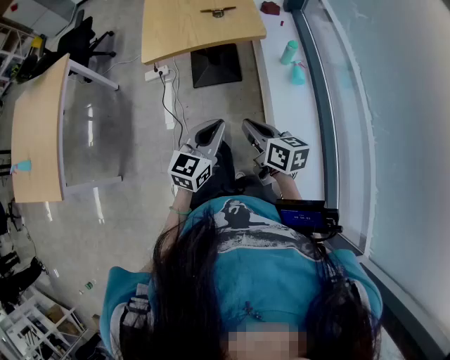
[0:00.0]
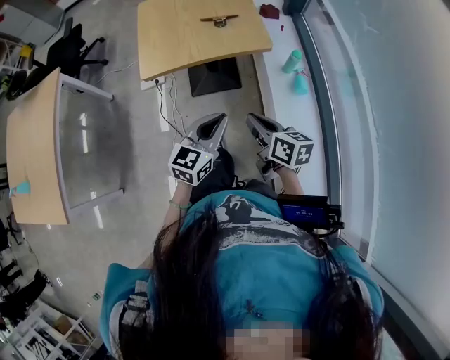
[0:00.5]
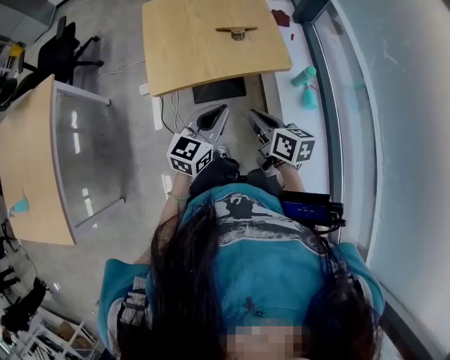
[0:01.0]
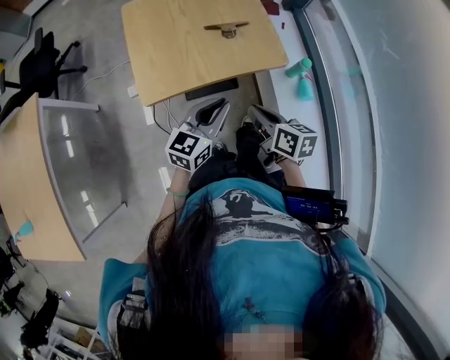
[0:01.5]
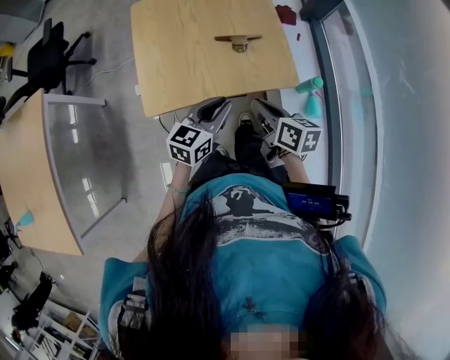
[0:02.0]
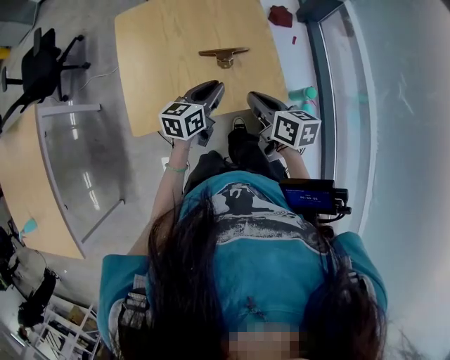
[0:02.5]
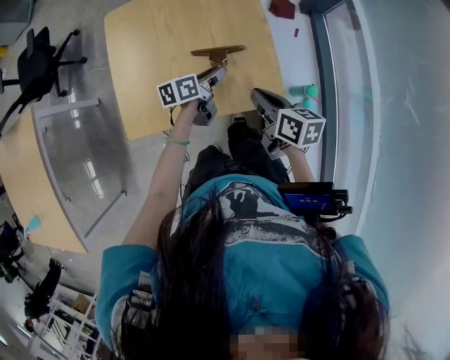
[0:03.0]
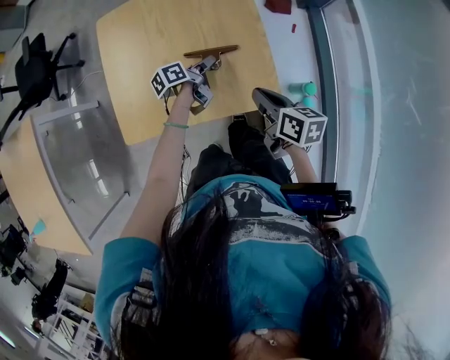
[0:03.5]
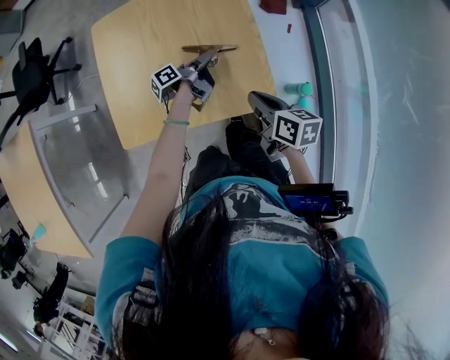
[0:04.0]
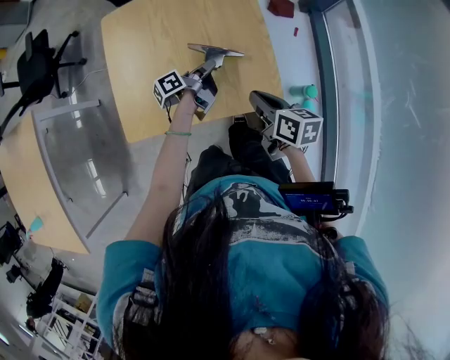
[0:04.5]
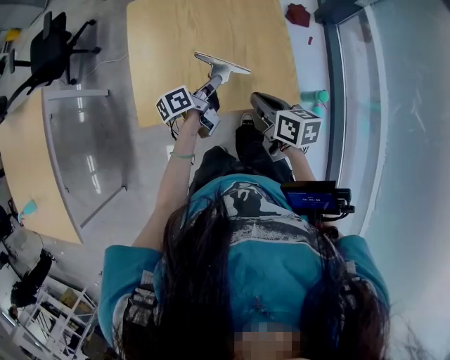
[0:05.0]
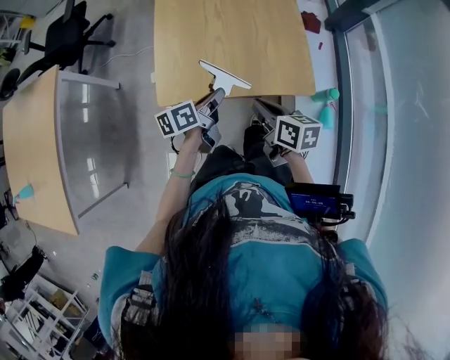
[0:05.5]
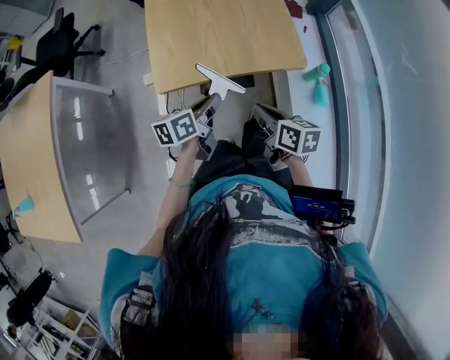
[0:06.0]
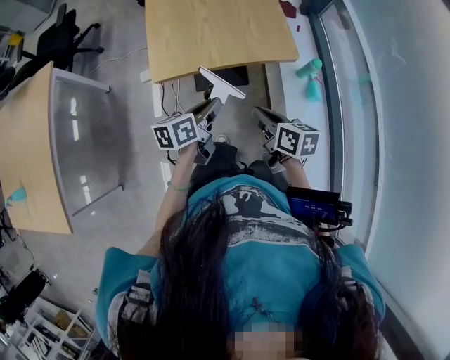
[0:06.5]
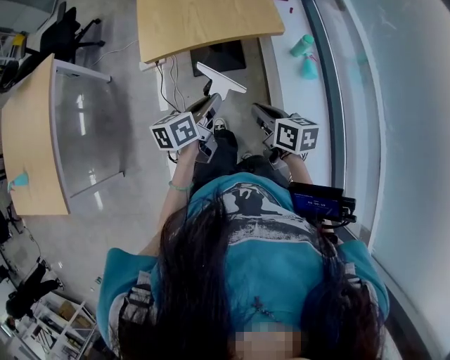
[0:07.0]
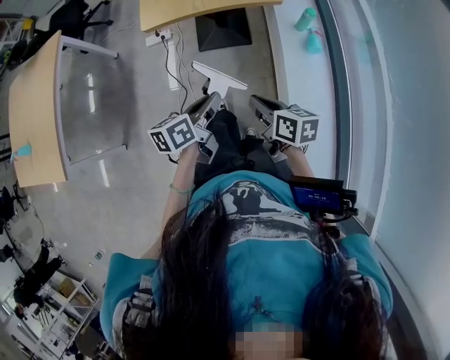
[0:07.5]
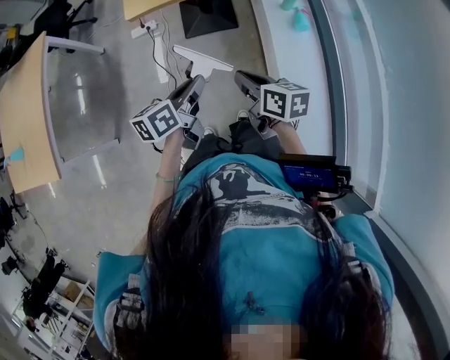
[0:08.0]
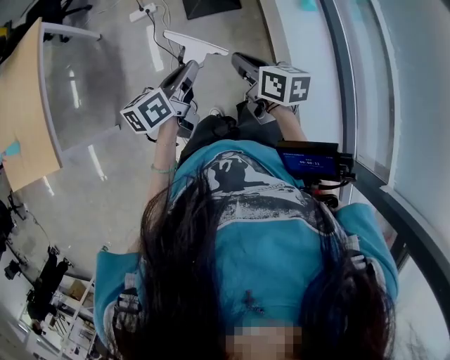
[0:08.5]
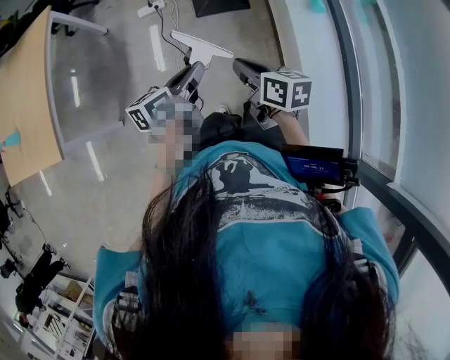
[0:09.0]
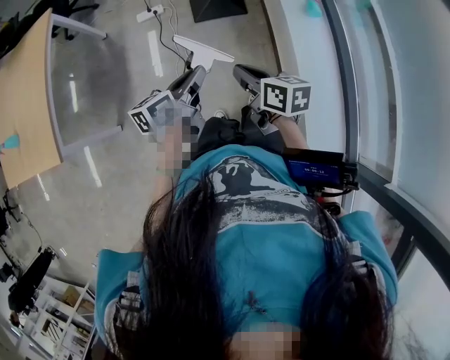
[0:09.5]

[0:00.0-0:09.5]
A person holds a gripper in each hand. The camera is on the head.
0:00.0 to 0:02.0: The left gripper changes place by about 5 cm, while the right gripper is displaced to the right by some 5 cm.
0:02.0 to 0:04.0: The left gripper goes approximately 20 cm forward and downward, rolls counterclockwise, seen from behind, by some 80 degrees, and opens, then closes once more.
0:04.0 to 0:05.5: The right gripper moves to the left, roughly 5 cm; the left gripper is displaced backward, upward and to the left by about 15 cm, and turns by approximately 30 degrees.
0:05.5 to 0:07.5: The left gripper shifts by approximately 5 cm.
0:07.5 to 0:09.5: There are only small adjustments of the grippers.

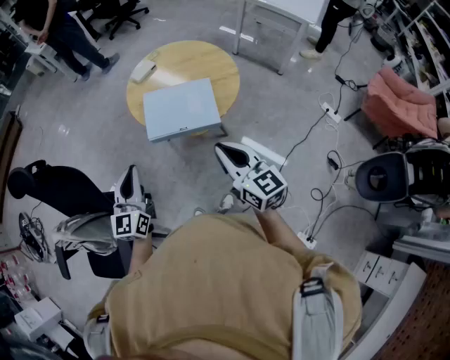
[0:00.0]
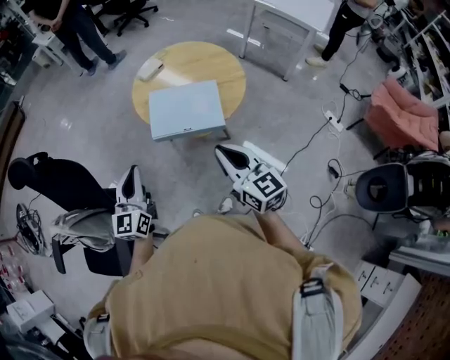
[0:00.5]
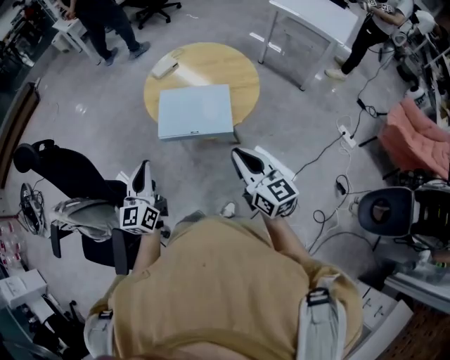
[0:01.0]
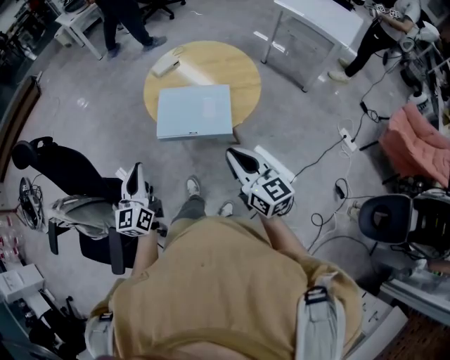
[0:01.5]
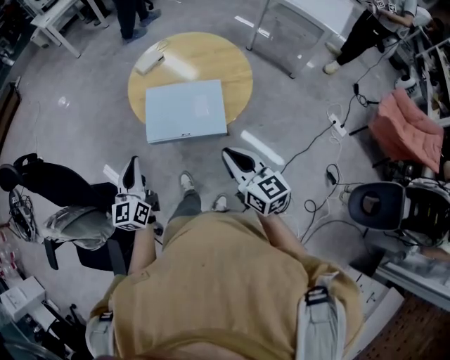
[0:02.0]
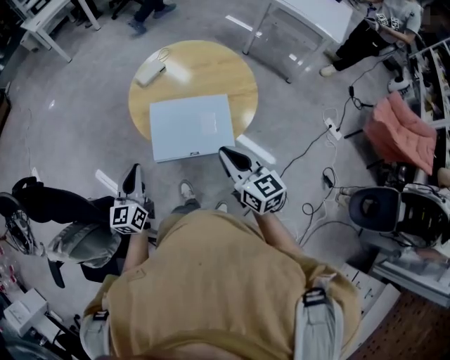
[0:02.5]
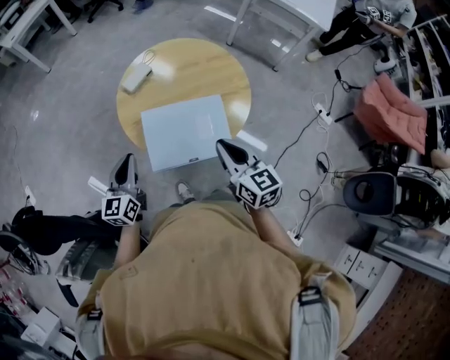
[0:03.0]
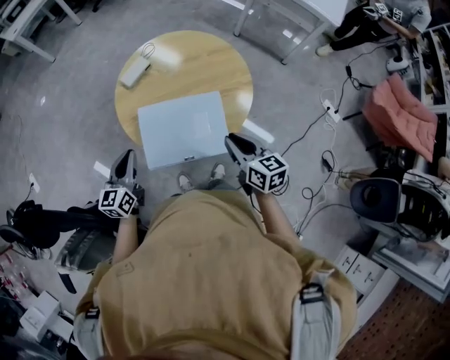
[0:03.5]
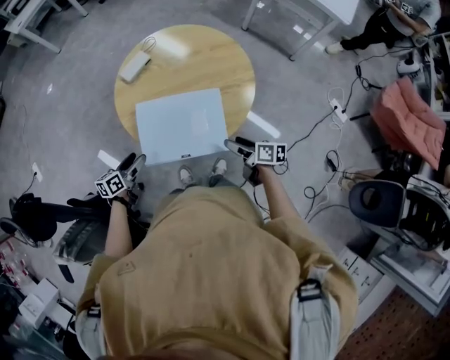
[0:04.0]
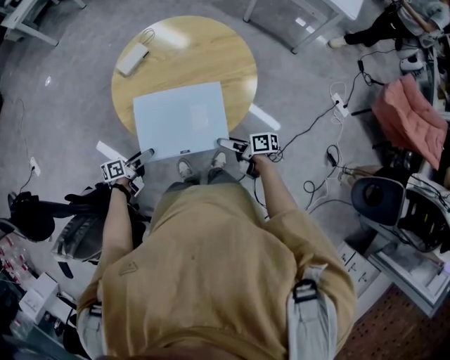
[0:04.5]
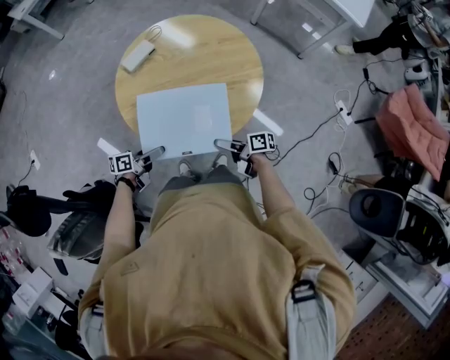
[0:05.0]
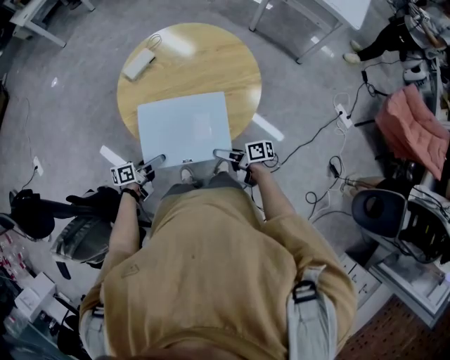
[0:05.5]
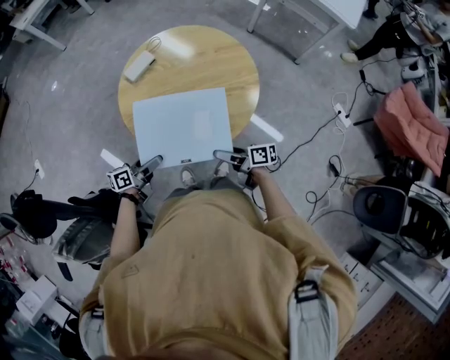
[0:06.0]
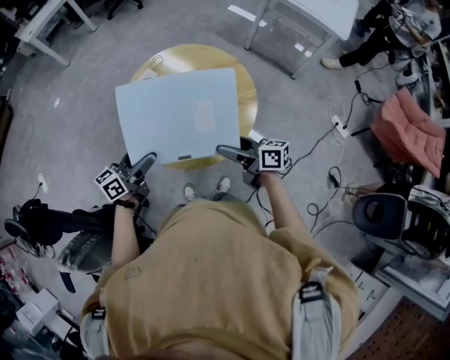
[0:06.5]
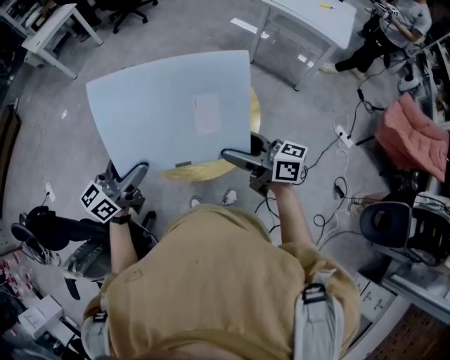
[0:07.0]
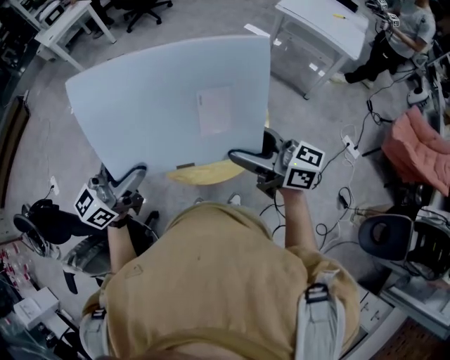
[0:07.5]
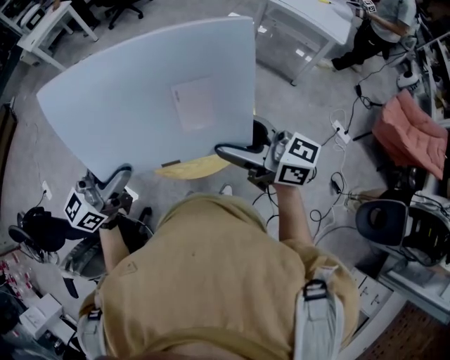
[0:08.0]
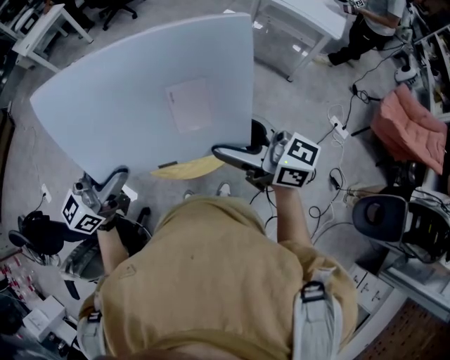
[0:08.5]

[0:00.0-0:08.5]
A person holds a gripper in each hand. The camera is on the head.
0:00.0 to 0:02.0: Both grippers travel together forward and downward, about 10 cm.
0:02.0 to 0:04.0: Both grippers travel together downward and forward, about 25 cm. The left gripper swivels some 50 degrees, and opens up; the right gripper rolls clockwise, seen from behind, by some 50 degrees, and opens up.
0:04.0 to 0:06.5: The right gripper shifts some 15 cm upward, and changes its angle by approximately 30 degrees. Meanwhile the left gripper heads upward and to the right, covering roughly 20 cm, and rotates approximately 30 degrees.
0:06.5 to 0:08.5: Both grippers travel together upward, some 25 cm. The left gripper rotates roughly 30 degrees. The right gripper rotates some 30 degrees.

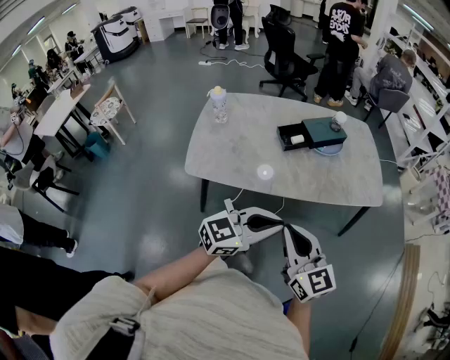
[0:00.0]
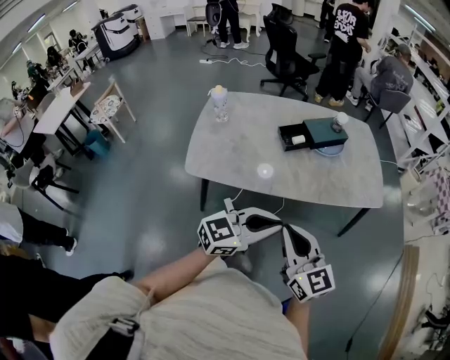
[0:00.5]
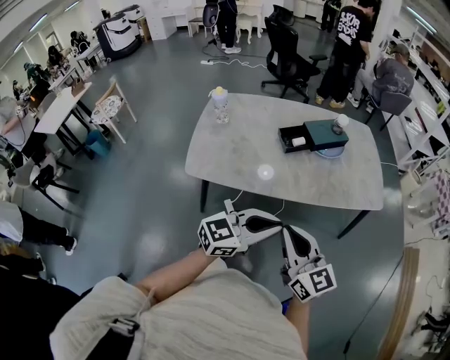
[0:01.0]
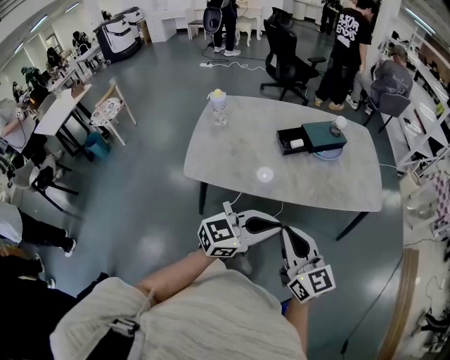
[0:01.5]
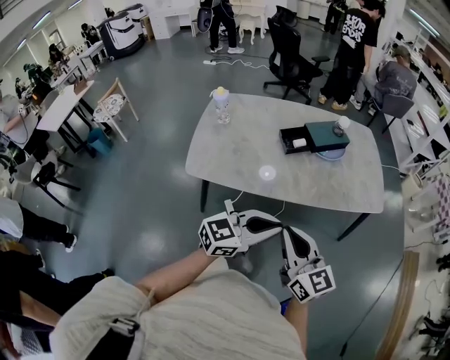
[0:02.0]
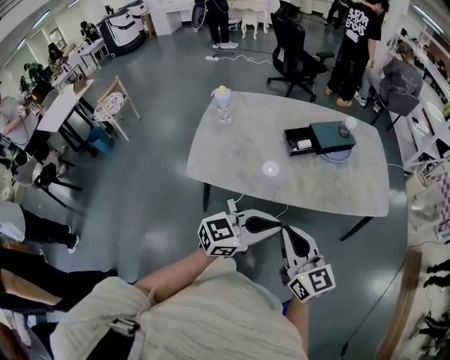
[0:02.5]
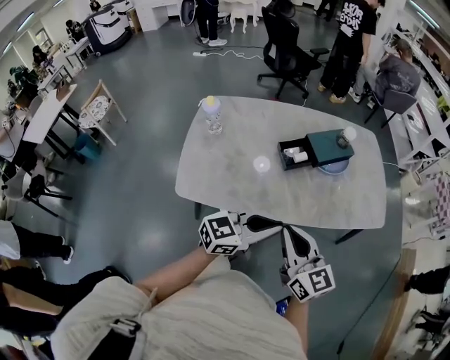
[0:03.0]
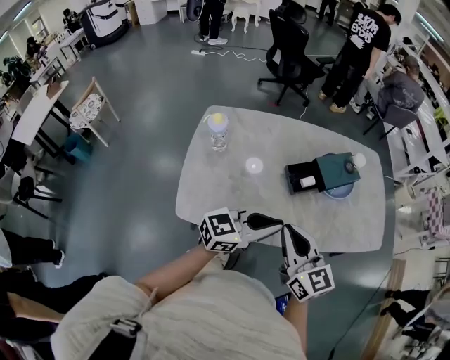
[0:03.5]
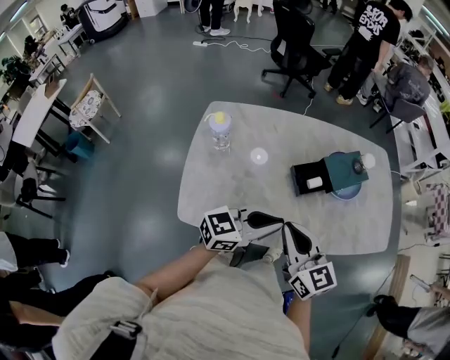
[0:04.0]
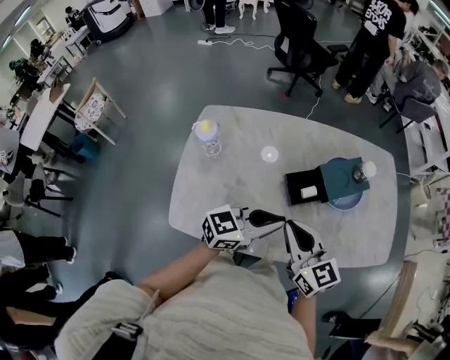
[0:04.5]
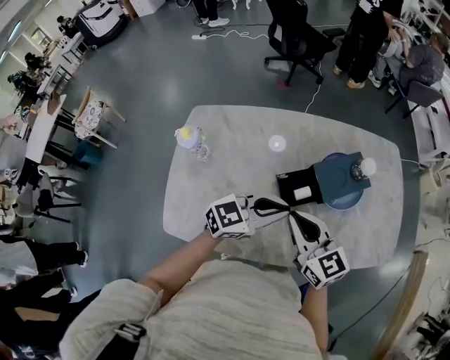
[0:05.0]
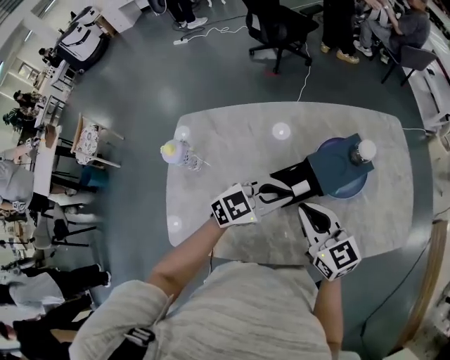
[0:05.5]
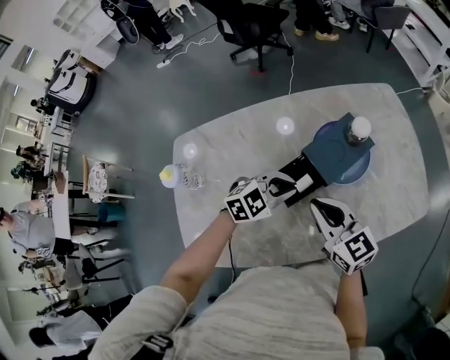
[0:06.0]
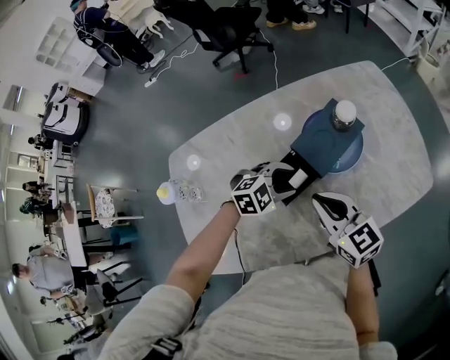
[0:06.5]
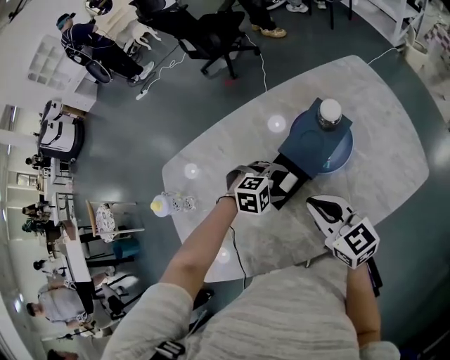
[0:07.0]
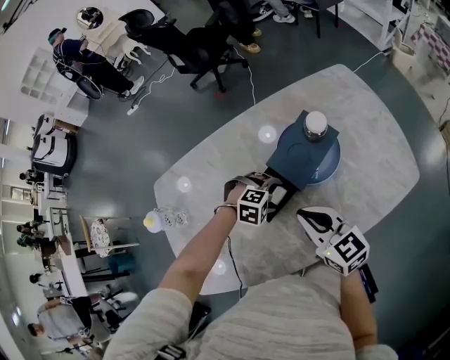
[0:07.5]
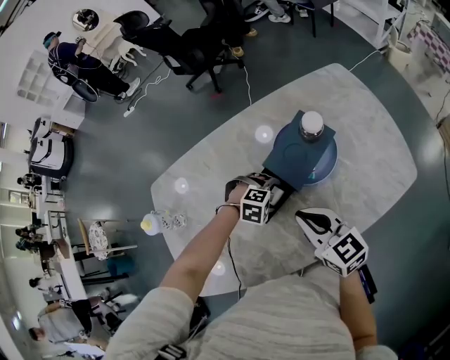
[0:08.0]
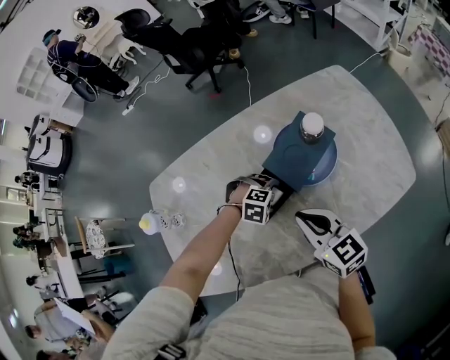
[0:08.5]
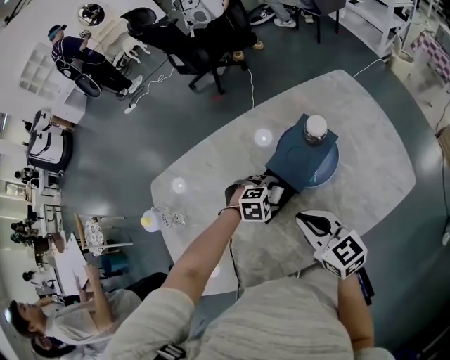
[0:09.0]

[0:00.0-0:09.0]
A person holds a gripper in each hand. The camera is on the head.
0:00.0 to 0:02.0: There are only small adjustments of the grippers.
0:02.0 to 0:04.5: Both grippers move forward and to the left, approximately 40 cm.
0:04.5 to 0:07.0: The left gripper is displaced downward by approximately 20 cm, points its fingers approximately 60 degrees further downward, and opens its fingers; the right gripper ends up about 20 cm from where it was.
0:07.0 to 0:09.0: The grippers stay close to where they were, moving slightly.
